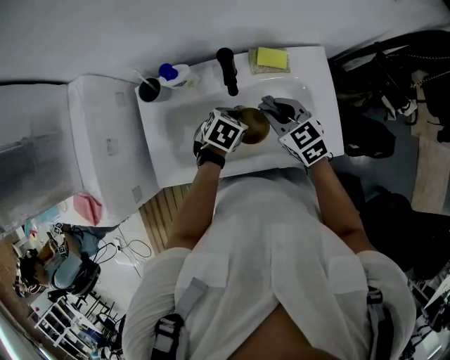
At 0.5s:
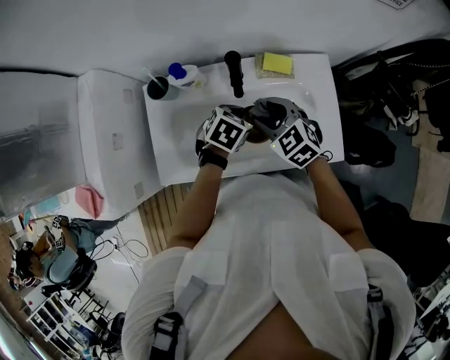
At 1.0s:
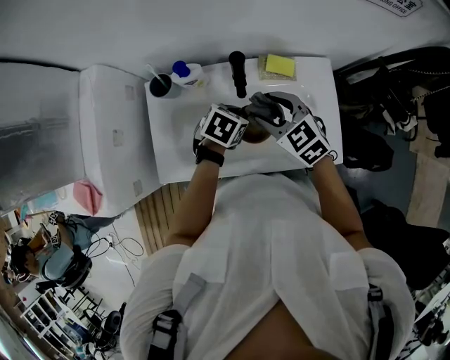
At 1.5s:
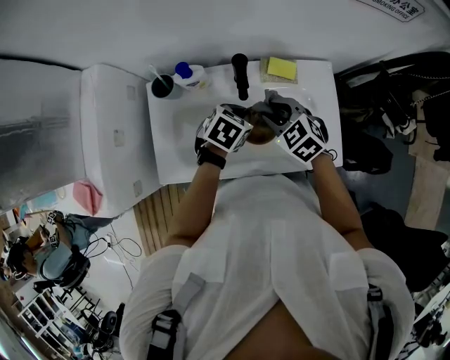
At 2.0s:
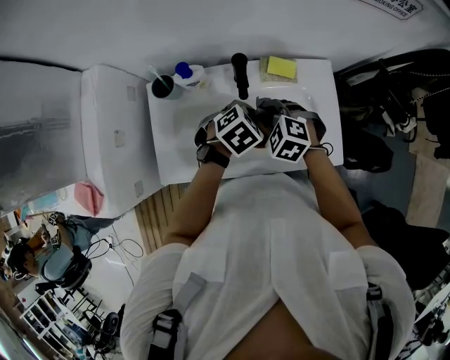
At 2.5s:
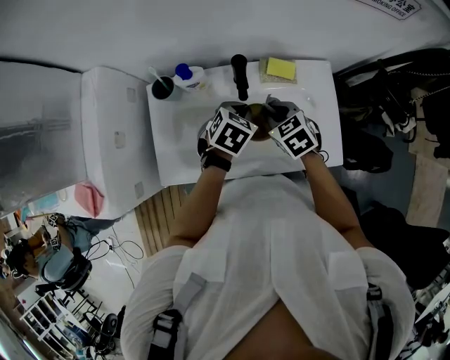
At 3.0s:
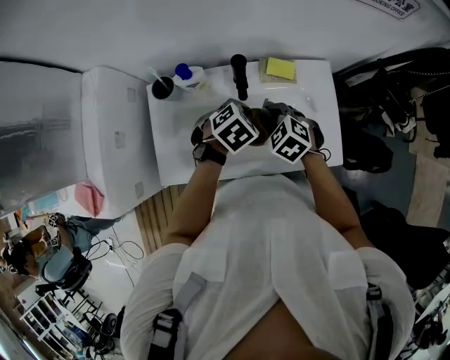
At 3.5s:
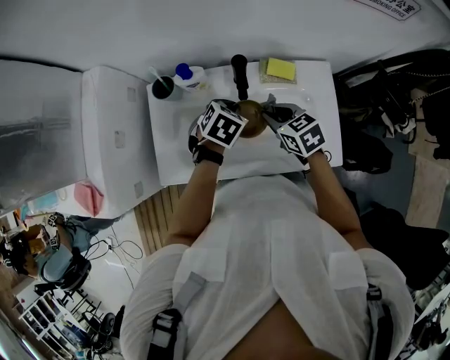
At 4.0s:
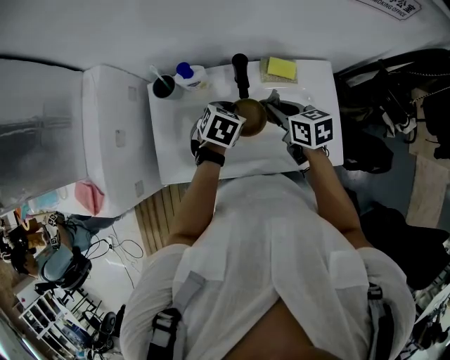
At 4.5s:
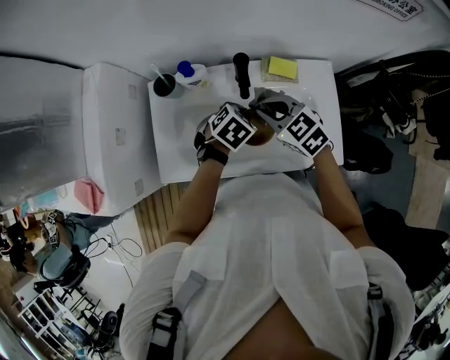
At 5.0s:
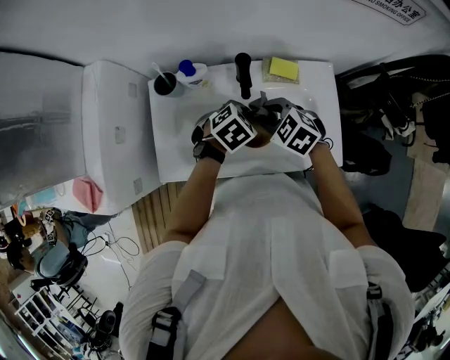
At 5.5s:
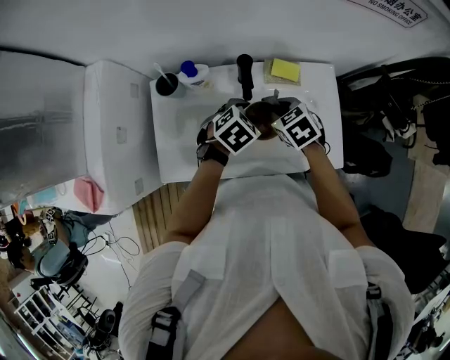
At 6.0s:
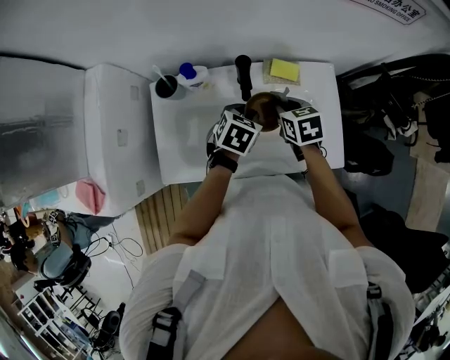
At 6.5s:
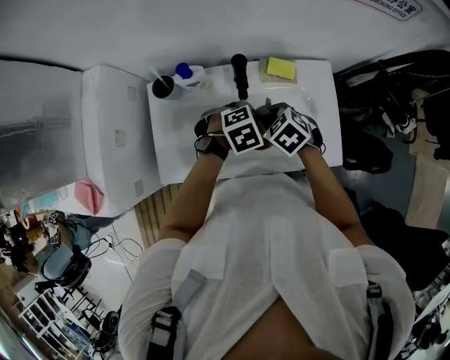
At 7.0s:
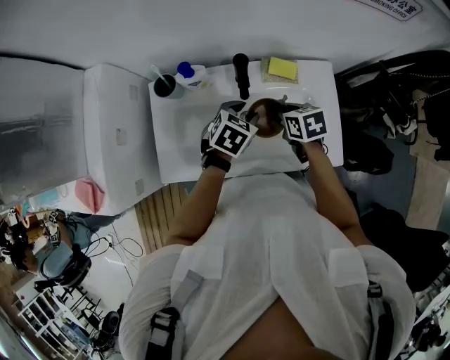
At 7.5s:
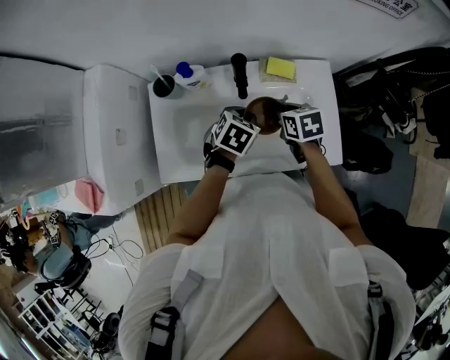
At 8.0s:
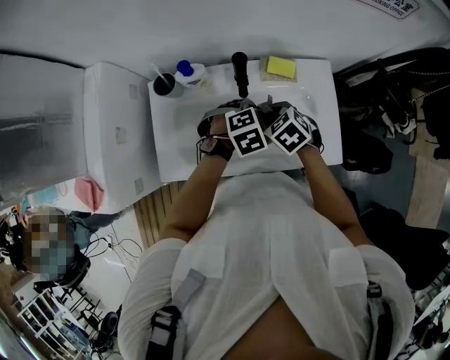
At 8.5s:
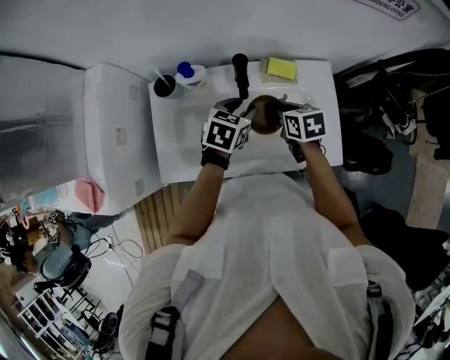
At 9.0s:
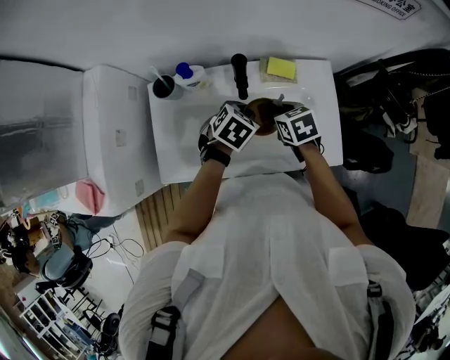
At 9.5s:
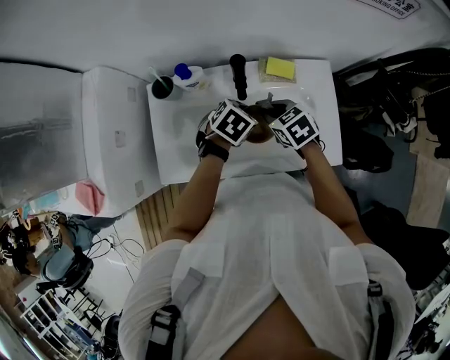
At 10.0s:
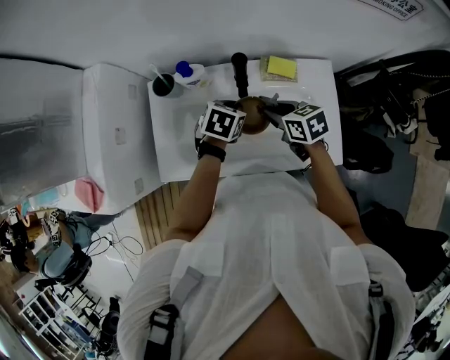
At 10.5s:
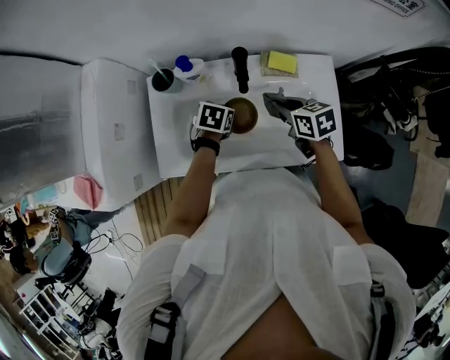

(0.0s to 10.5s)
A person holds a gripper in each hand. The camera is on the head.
0.0s - 2.0s: The right gripper changes its angle by approximately 40 degrees, and opens and closes again. Meanwhile the left gripper goes roughly 5 cm upward.
2.0s - 4.0s: The left gripper shifts about 5 cm to the left, and rotates approximately 30 degrees. The right gripper changes place by roughly 5 cm, and twists roughly 60 degrees clockwise, seen from behind.
4.0s - 6.5s: The right gripper moves roughly 5 cm, rotates roughly 50 degrees, and opens and closes again; the left gripper is displaced to the right by some 5 cm, swivels some 40 degrees, and opens and closes again.
6.5s - 8.5s: The right gripper swings left and right, approximately 5 cm each way, with 2 reversals, and swivels roughly 40 degrees, while the left gripper rotates around the line of its fingers by some 40 degrees, counterclockwise from behind, and opens its fingers.
8.5s - 10.5s: The left gripper is displaced downward and to the left by some 10 cm, rotates approximately 20 degrees, and closes.

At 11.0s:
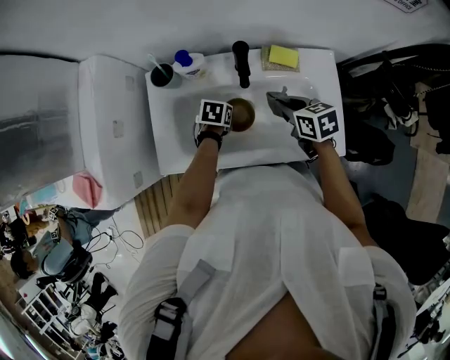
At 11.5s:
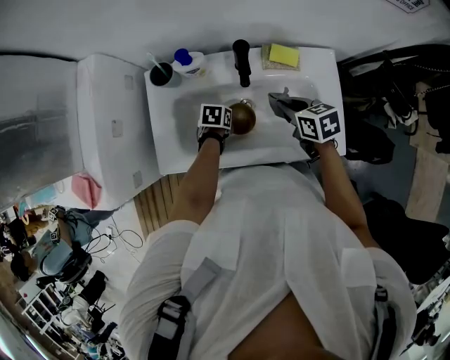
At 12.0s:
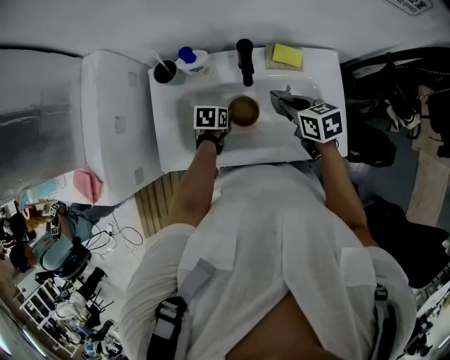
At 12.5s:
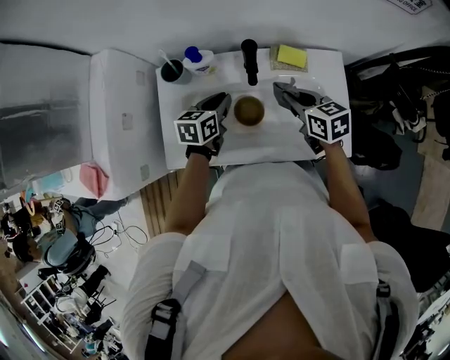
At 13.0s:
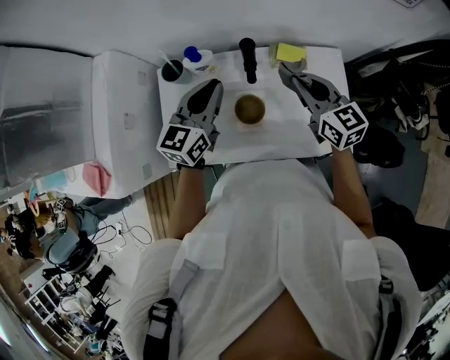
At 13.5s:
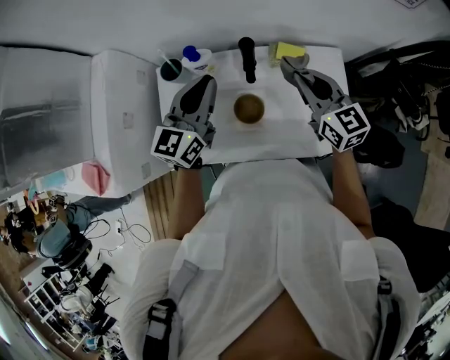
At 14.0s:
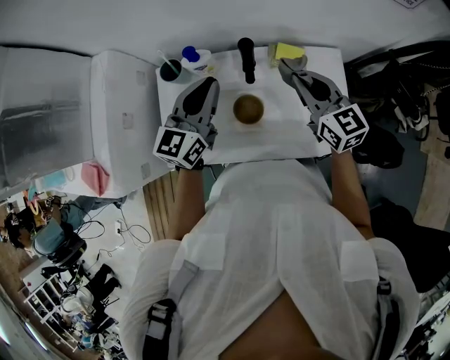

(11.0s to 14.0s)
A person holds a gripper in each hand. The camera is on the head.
11.0s - 12.5s: The left gripper goes about 15 cm upward, and angles its fingers upward, by approximately 30 degrees.
12.5s - 14.0s: The left gripper moves upward, roughly 20 cm, and angles its fingers upward, by approximately 30 degrees, while the right gripper is displaced upward by roughly 10 cm, and swivels some 30 degrees.

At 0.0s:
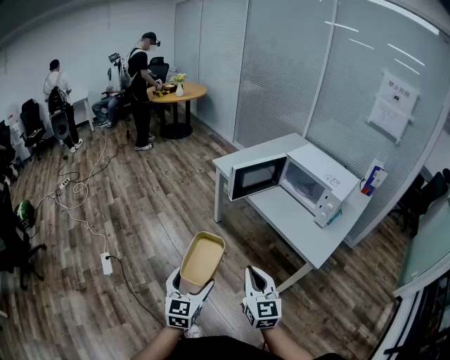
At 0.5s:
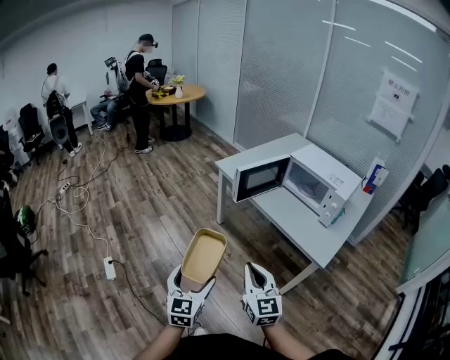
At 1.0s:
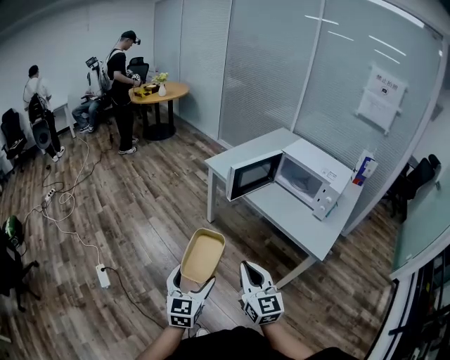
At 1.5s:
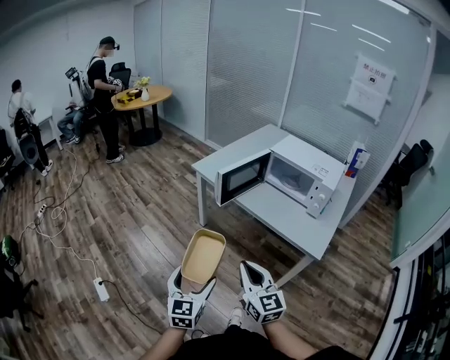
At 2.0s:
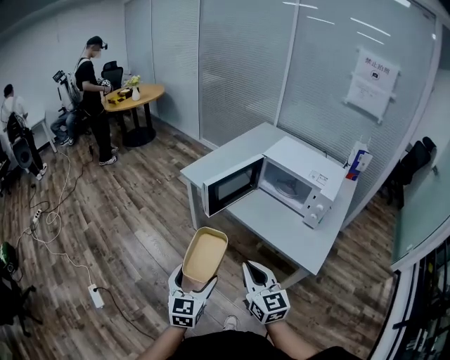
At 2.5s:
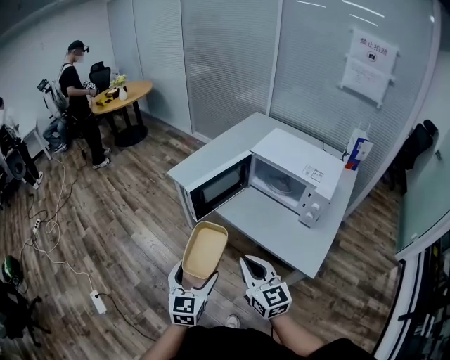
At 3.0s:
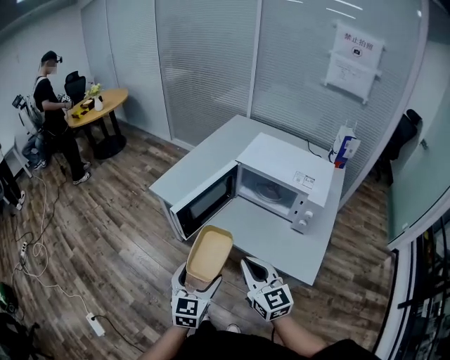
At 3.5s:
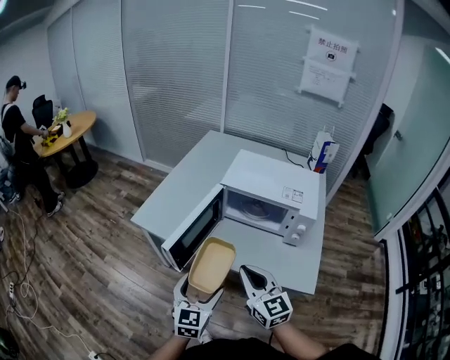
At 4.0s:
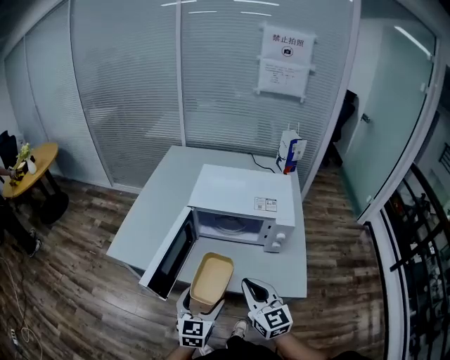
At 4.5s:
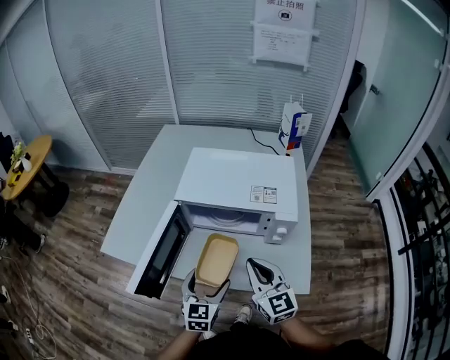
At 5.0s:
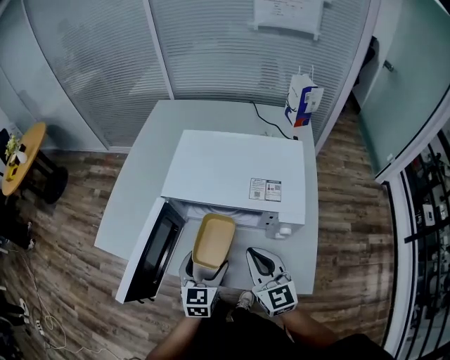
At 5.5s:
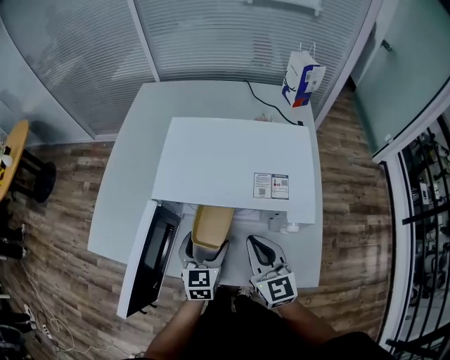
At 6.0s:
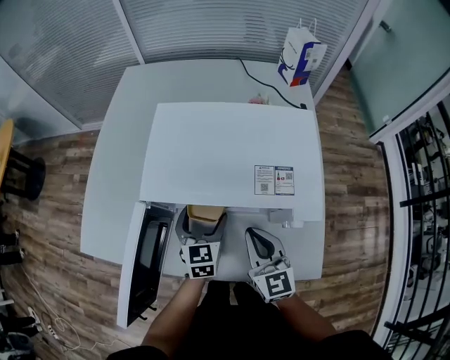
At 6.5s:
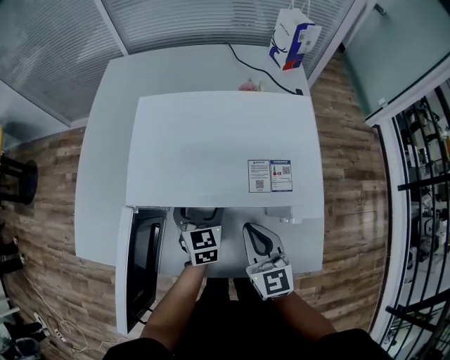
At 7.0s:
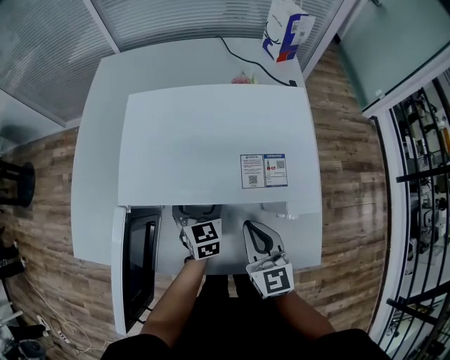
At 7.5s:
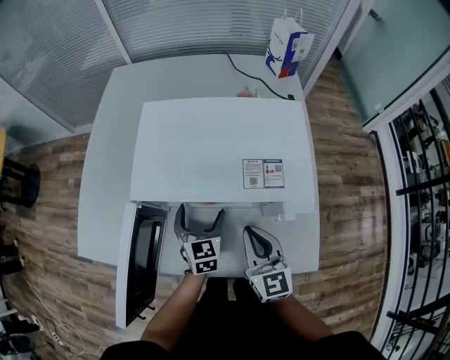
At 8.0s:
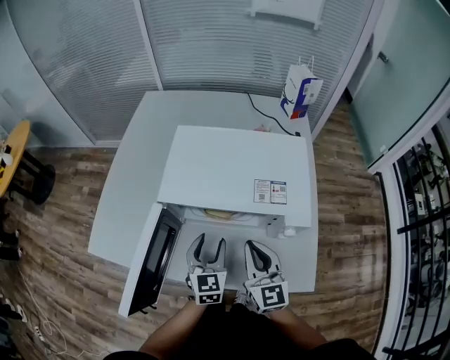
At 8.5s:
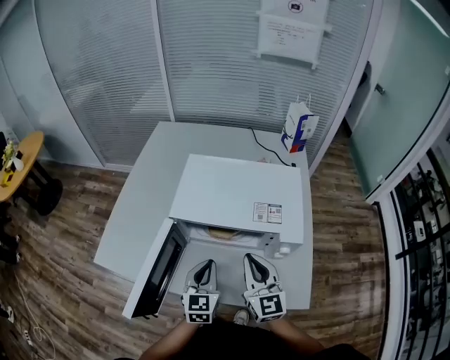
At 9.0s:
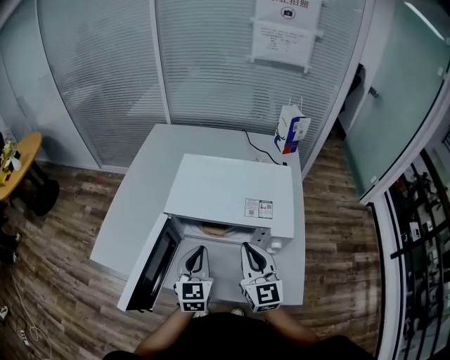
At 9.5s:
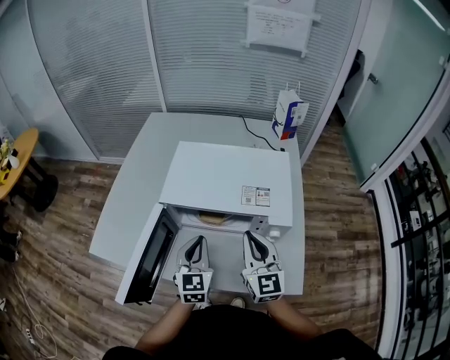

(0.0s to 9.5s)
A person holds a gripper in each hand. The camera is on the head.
0.0s - 2.0s: The grippers both shift forward by about 15 cm.
2.0s - 4.0s: The right gripper moves some 25 cm, and changes its angle by about 30 degrees; the left gripper moves roughly 30 cm, and rotates roughly 30 degrees.
4.0s - 5.5s: Both grippers travel together forward, some 20 cm.
5.5s - 7.5s: The left gripper is displaced forward by roughly 5 cm.
7.5s - 9.5s: The left gripper is displaced upward and backward by some 15 cm, and closes its fingers; the right gripper moves upward, approximately 10 cm.

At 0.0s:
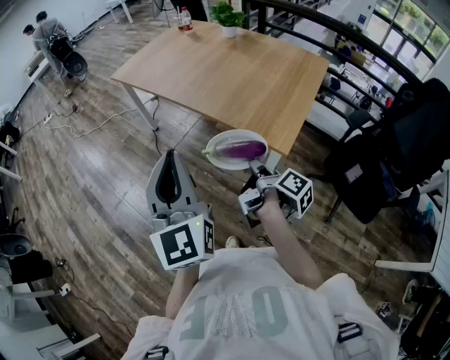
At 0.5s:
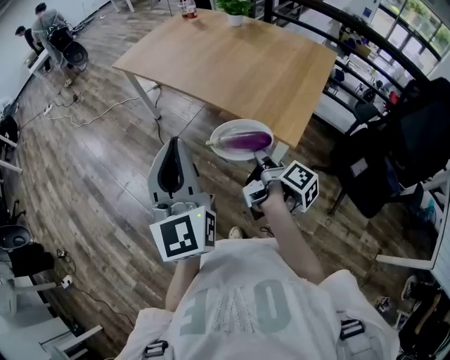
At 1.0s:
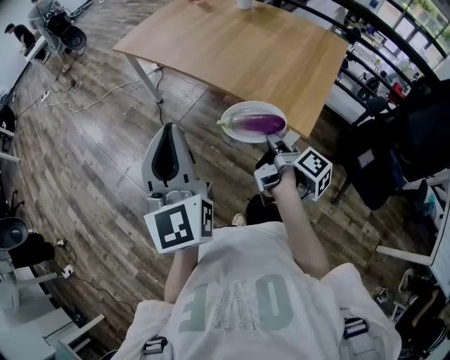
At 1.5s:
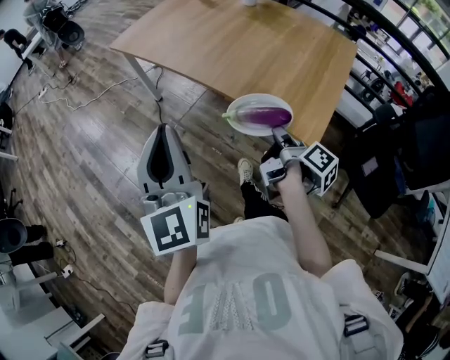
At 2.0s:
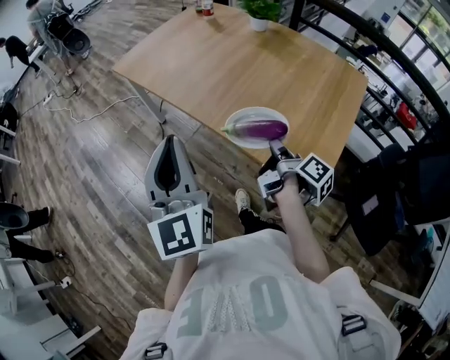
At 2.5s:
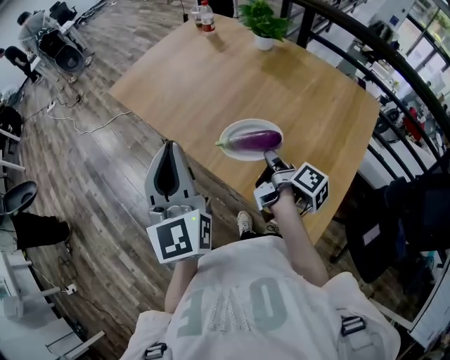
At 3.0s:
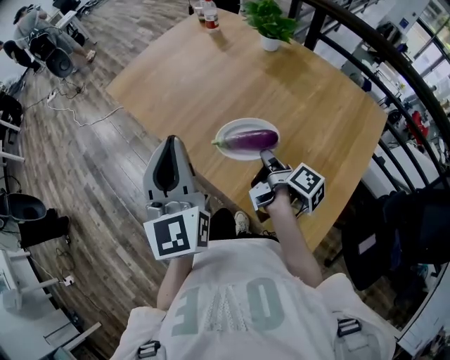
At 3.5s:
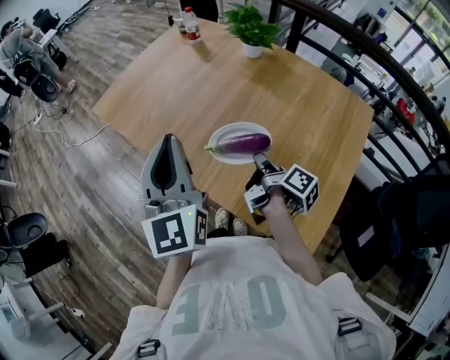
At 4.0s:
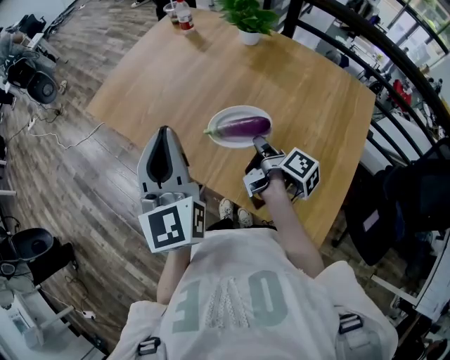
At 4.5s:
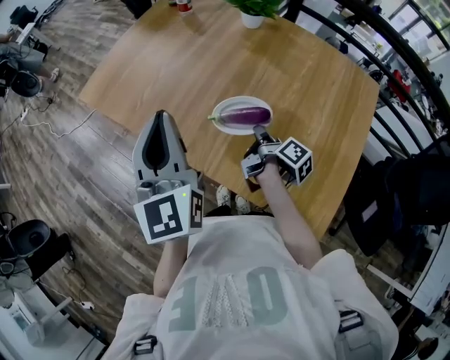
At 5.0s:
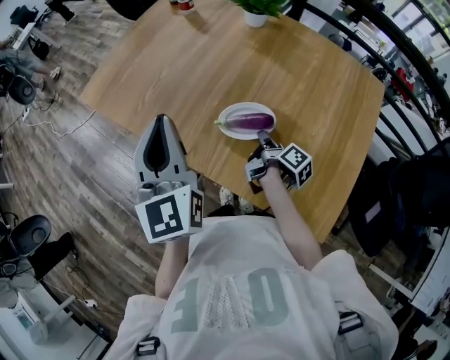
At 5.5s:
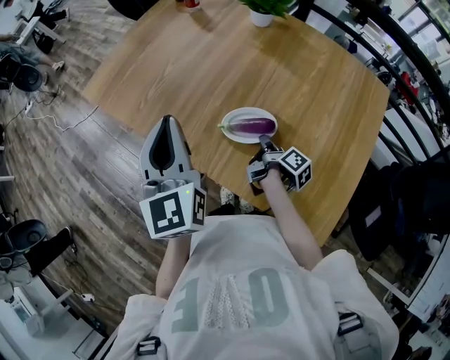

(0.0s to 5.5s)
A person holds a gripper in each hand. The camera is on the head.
0.0s - 2.0s: The left gripper shifts by roughly 25 cm.
2.0s - 3.5s: The left gripper moves some 25 cm.
3.5s - 5.5s: The left gripper goes about 5 cm downward.
